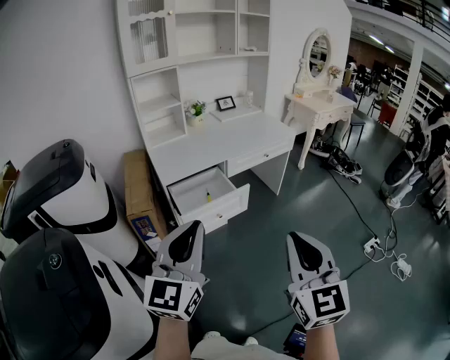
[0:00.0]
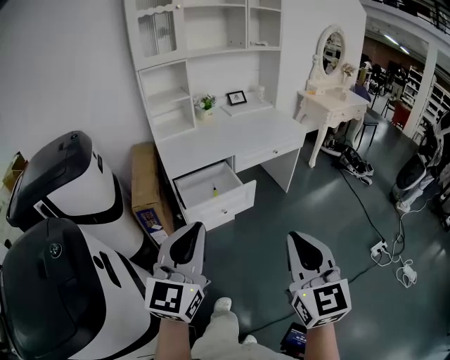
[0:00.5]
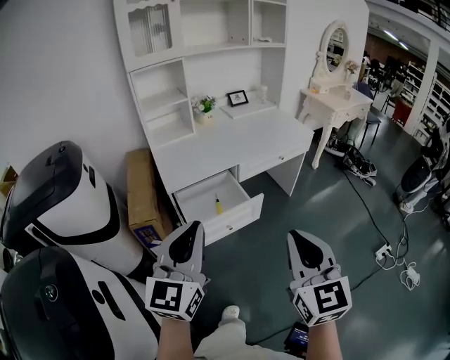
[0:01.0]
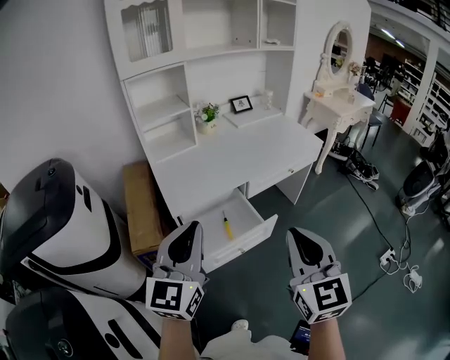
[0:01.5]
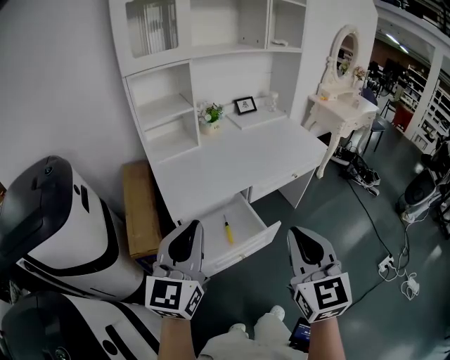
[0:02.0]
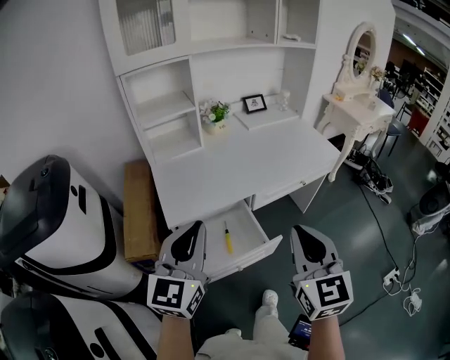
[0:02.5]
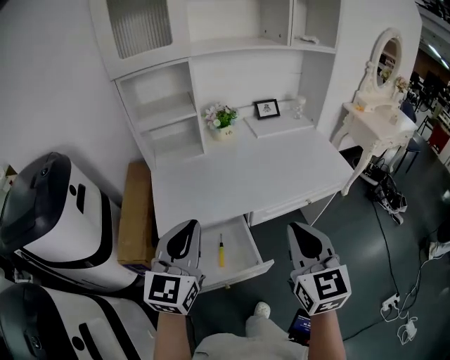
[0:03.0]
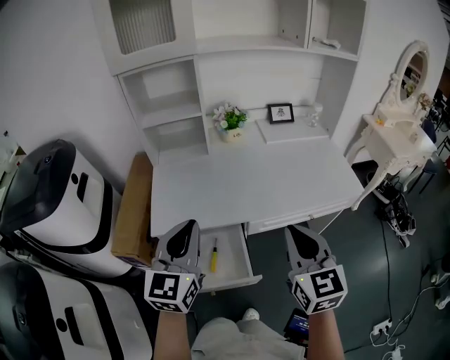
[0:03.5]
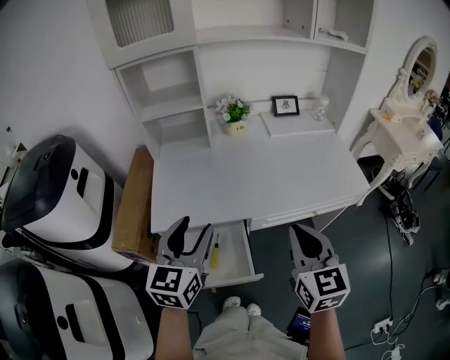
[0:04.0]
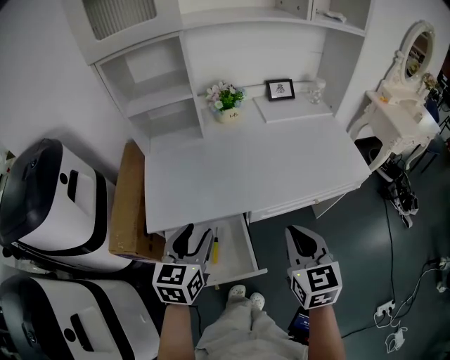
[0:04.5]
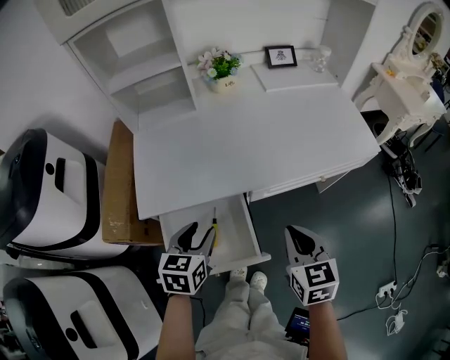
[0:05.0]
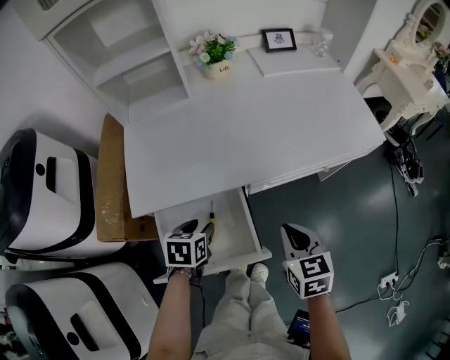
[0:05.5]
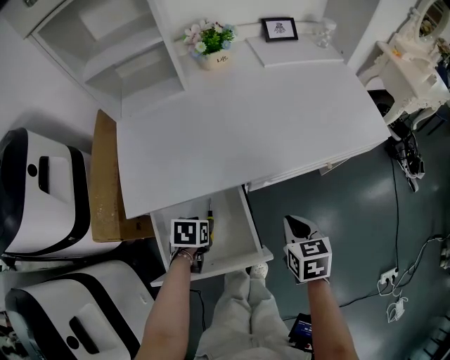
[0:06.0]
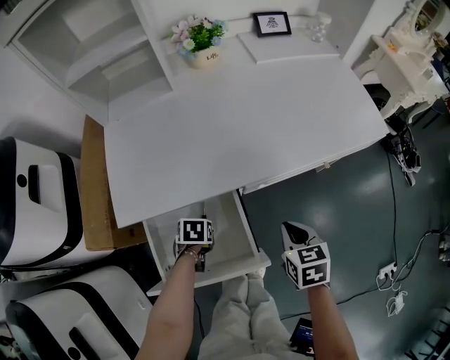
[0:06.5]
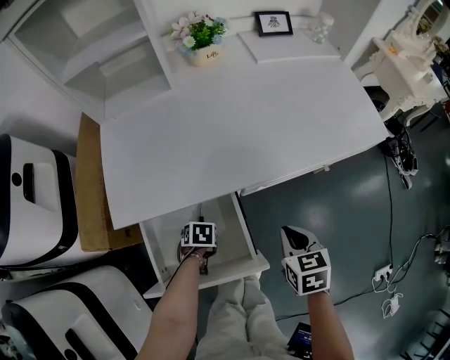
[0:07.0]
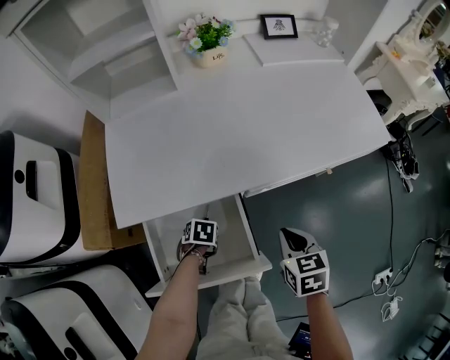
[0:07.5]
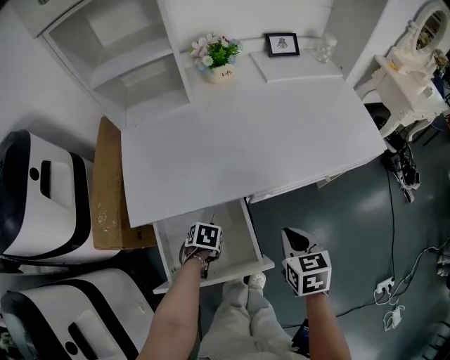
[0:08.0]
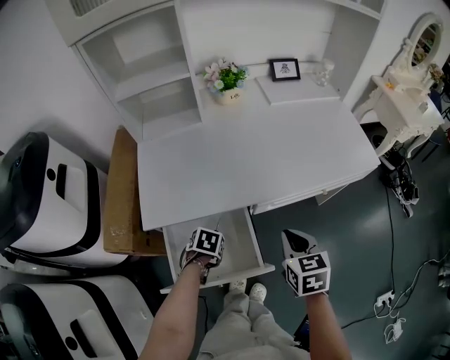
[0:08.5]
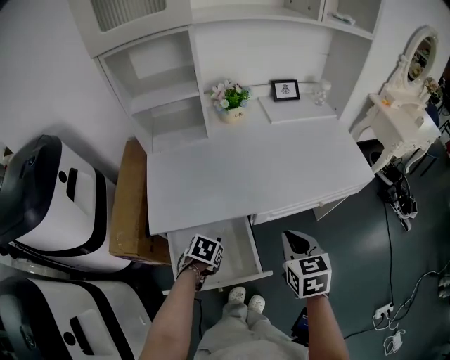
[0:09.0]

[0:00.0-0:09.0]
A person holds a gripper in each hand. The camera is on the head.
0:00.0 to 0:02.0: The grippers both shift forward by approximately 30 cm.
0:02.0 to 0:04.5: The right gripper heads forward, to the right and downward, covering about 35 cm, and changes its angle by approximately 20 degrees. The left gripper moves forward, downward and to the right, about 30 cm, changes its angle by about 30 degrees, and opens up.
0:04.5 to 0:07.0: The left gripper goes some 40 cm downward, and tilts its fingers approximately 60 degrees downward, while the right gripper shifts roughly 20 cm downward, and rotates approximately 30 degrees.
0:07.0 to 0:09.0: Both grippers move upward, roughly 15 cm.

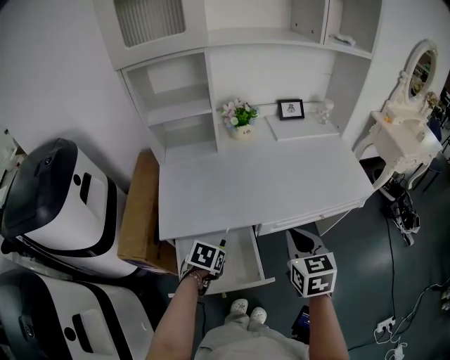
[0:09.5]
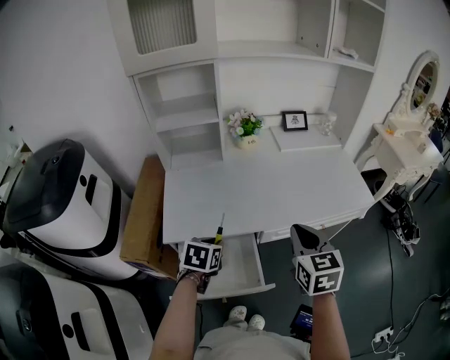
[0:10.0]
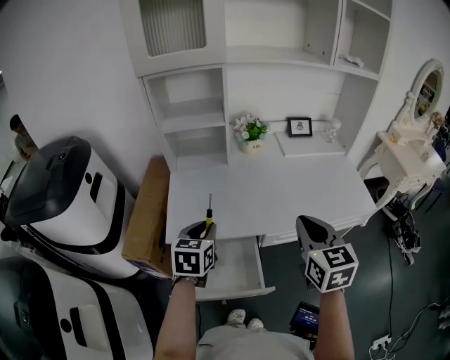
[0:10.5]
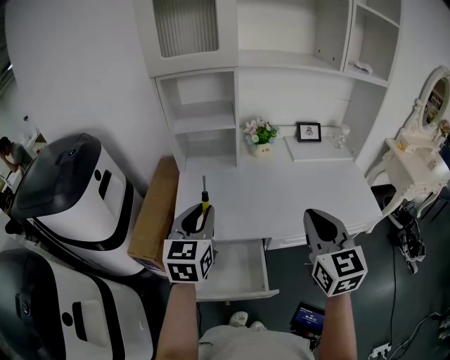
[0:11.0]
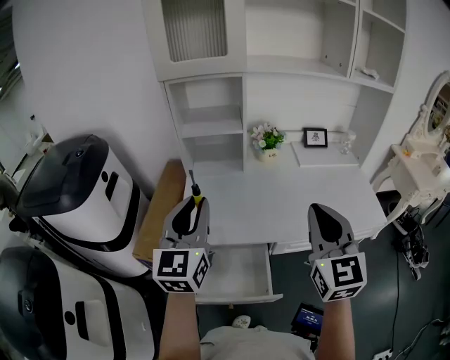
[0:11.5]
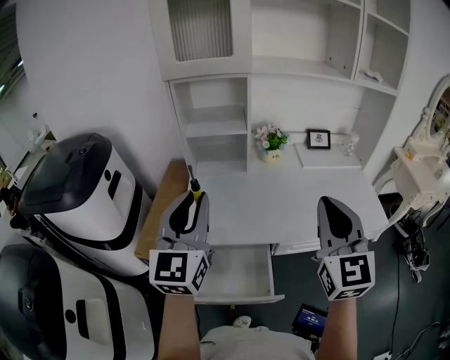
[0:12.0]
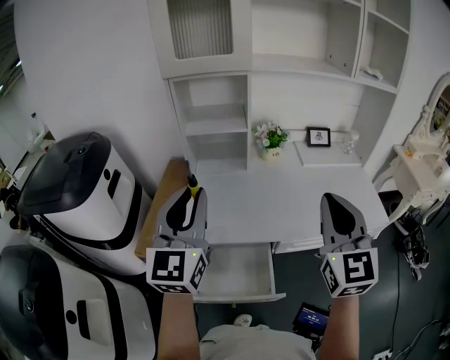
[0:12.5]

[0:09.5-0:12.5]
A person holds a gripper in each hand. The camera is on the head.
0:09.5 to 0:11.0: The right gripper heads upward, covering roughly 15 cm, and swivels about 20 degrees, while the left gripper goes about 30 cm upward, and points its fingers some 50 degrees further upward.
0:11.0 to 0:12.5: The right gripper heads upward, covering roughly 10 cm. The left gripper goes approximately 10 cm upward, and turns by approximately 20 degrees.

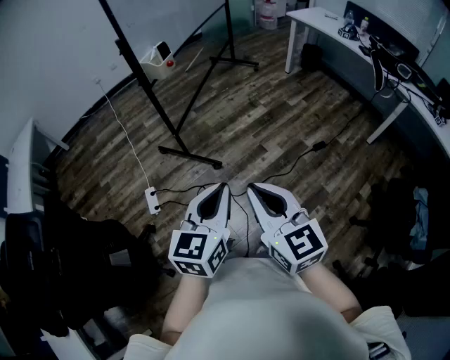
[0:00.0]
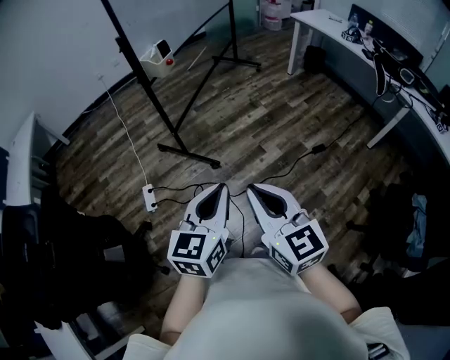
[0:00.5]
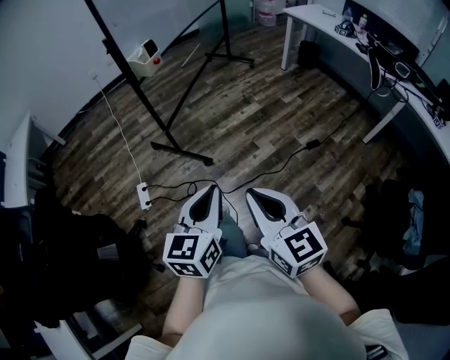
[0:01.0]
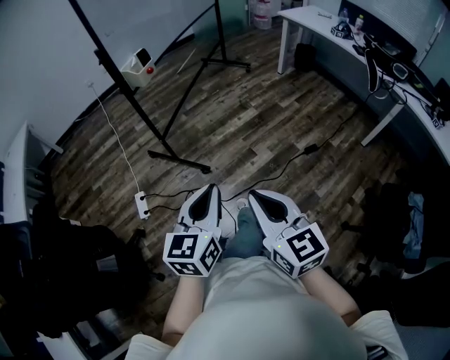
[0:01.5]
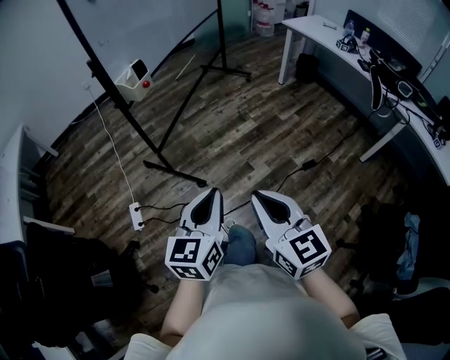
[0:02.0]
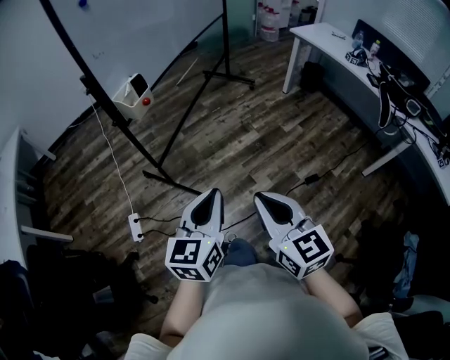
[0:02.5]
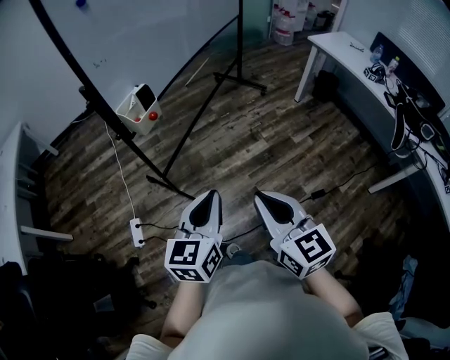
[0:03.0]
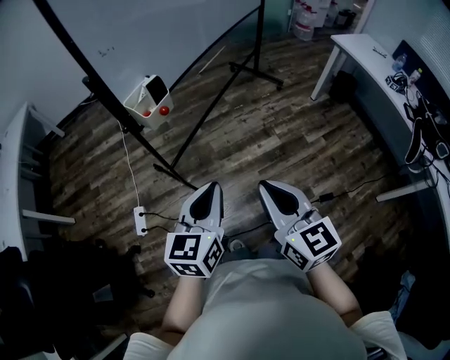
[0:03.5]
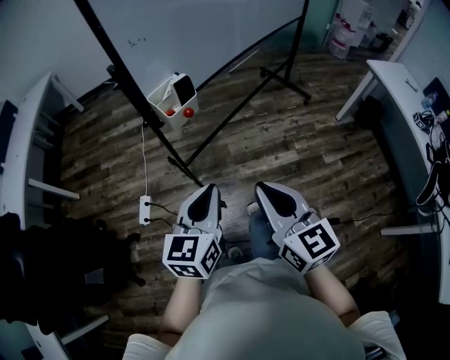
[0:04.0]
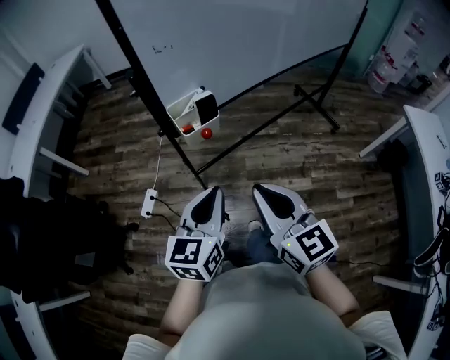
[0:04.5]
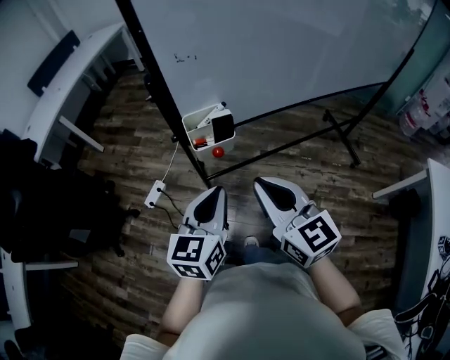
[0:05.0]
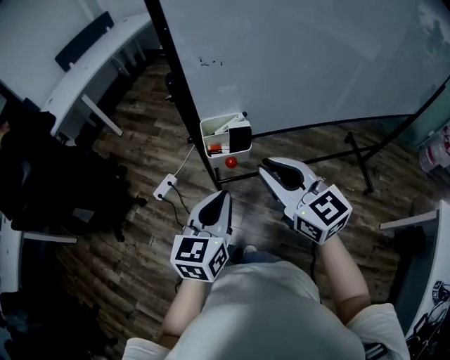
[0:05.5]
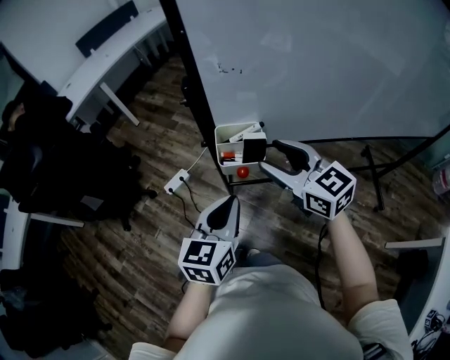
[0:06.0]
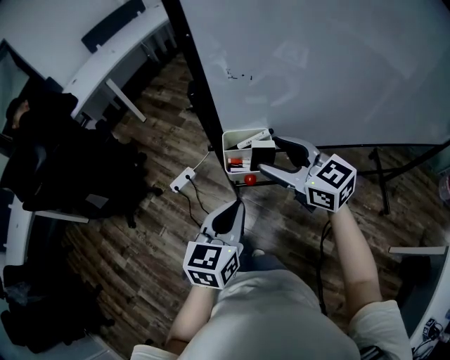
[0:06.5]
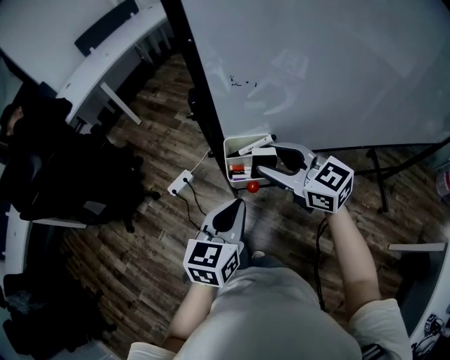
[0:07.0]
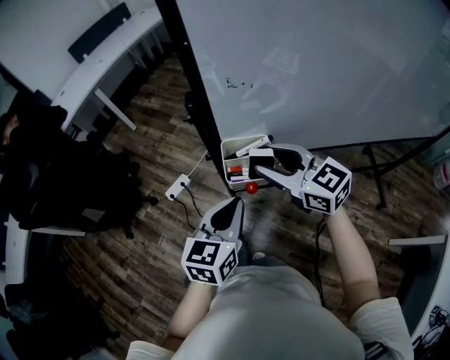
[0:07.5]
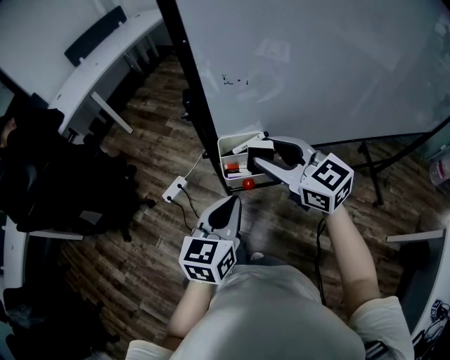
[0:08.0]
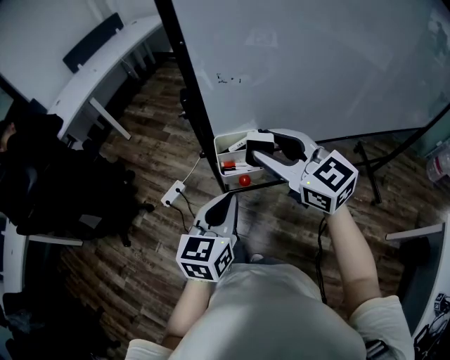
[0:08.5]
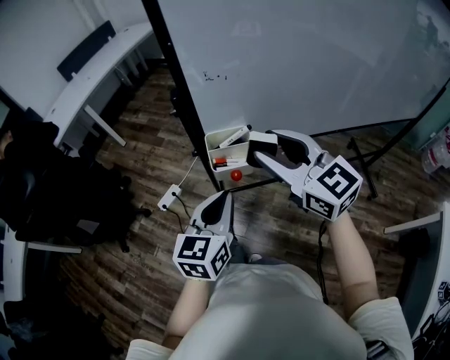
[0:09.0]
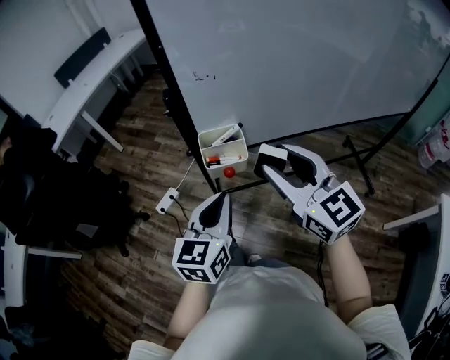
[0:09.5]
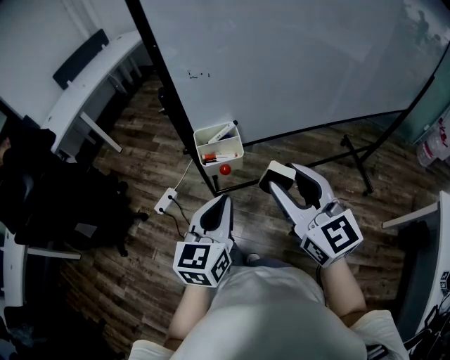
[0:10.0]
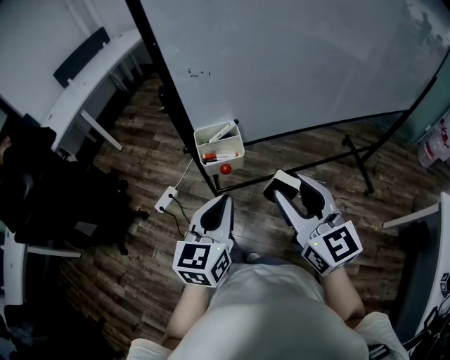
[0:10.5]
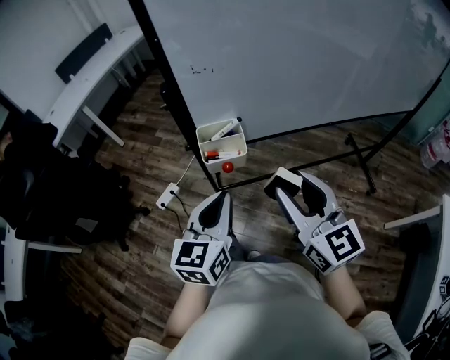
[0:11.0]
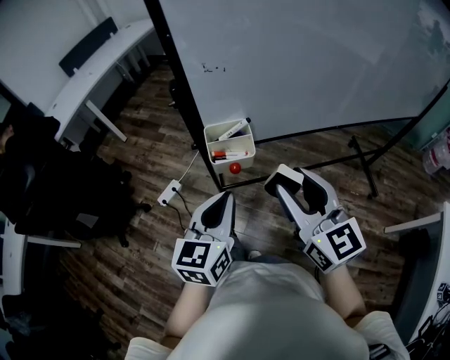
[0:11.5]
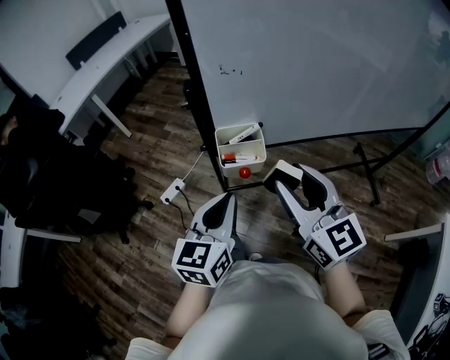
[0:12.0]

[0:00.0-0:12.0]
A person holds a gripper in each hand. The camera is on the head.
0:00.0 to 0:02.0: The grippers both shift forward and to the right by roughly 15 cm.
0:02.0 to 0:04.0: The grippers both shift forward by some 35 cm. The left gripper changes its angle by about 20 degrees; the right gripper turns by some 20 degrees.
0:04.0 to 0:06.0: The left gripper ends up approximately 20 cm from where it was, and turns by approximately 40 degrees. The right gripper moves roughly 35 cm, rotates about 60 degrees, and opens up.
0:06.0 to 0:08.0: The grippers make only small movements.
0:08.0 to 0:10.0: The left gripper heads backward, covering some 5 cm; the right gripper travels backward and to the right by some 15 cm, and rotates about 30 degrees.
0:10.0 to 0:12.0: The grippers make only small movements.

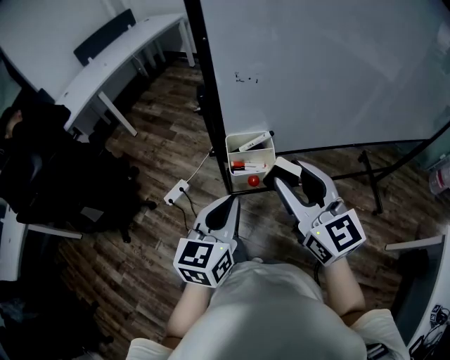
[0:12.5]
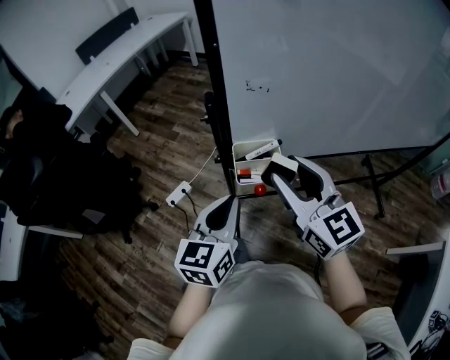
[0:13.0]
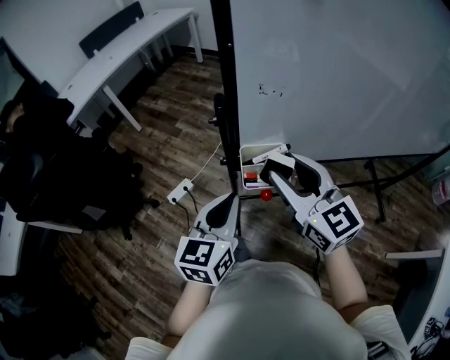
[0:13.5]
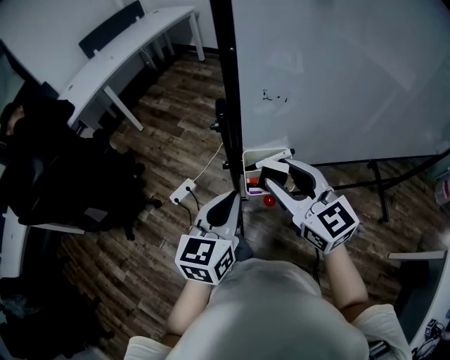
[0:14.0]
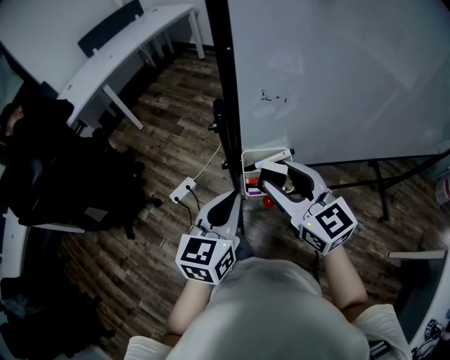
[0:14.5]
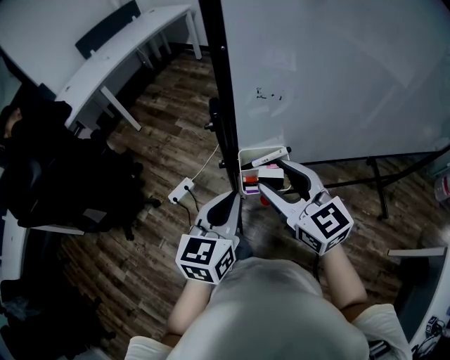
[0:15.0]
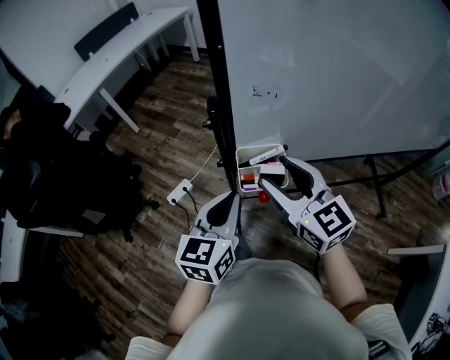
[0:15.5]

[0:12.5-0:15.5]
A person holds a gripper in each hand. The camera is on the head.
0:12.5 to 0:14.0: The grippers both shift forward by about 10 cm.
0:14.0 to 0:15.5: Neither gripper changes place.
